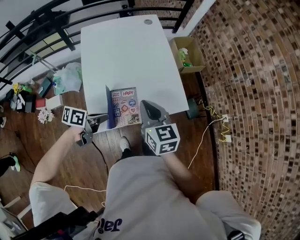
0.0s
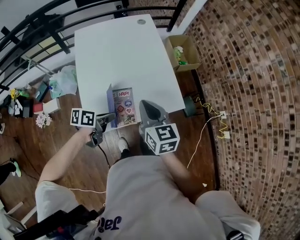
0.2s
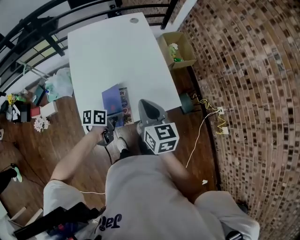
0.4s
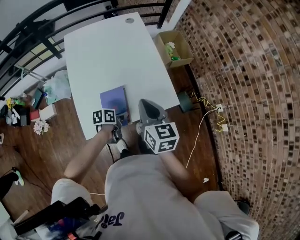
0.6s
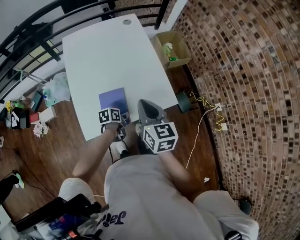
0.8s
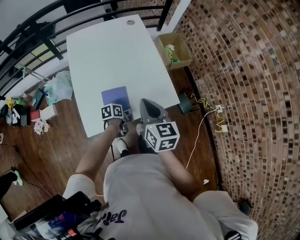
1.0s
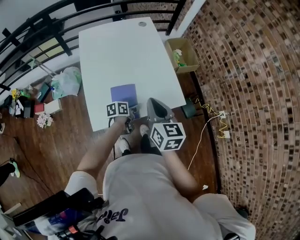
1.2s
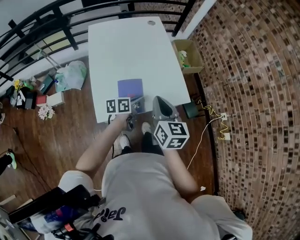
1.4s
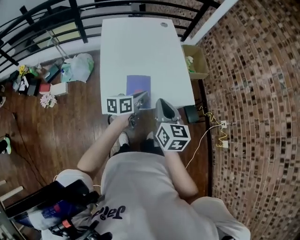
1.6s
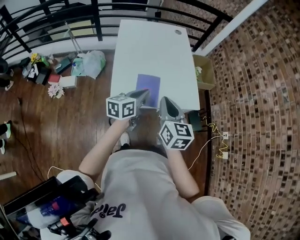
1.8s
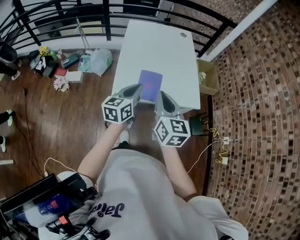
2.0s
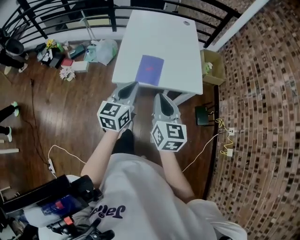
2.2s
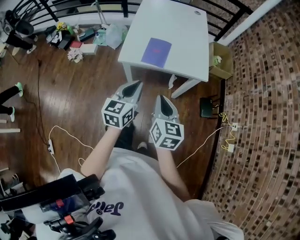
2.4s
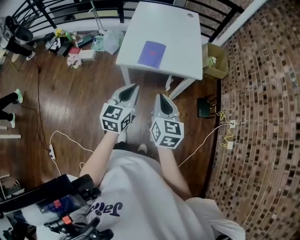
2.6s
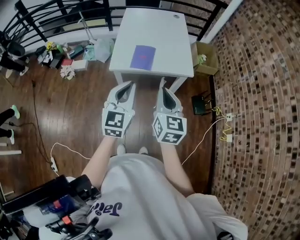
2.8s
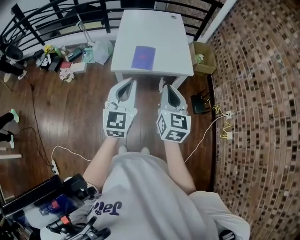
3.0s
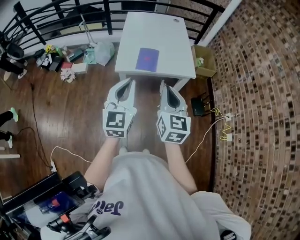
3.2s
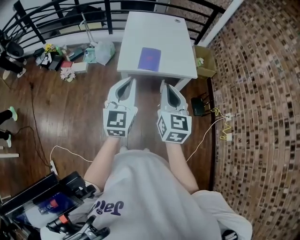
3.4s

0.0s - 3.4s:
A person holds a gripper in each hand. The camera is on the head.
0.0s - 1.6s: The left gripper is displaced to the right by approximately 10 cm, goes downward and returns, approximately 15 cm each way, and changes its angle by approximately 30 degrees. The right gripper heads backward, covering some 10 cm.
1.6s - 3.4s: The left gripper heads backward and upward, covering about 40 cm, and changes its angle by some 70 degrees, while the right gripper is displaced backward by some 25 cm.

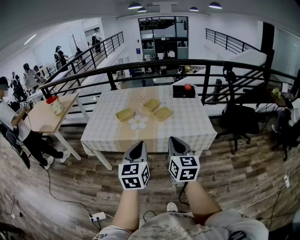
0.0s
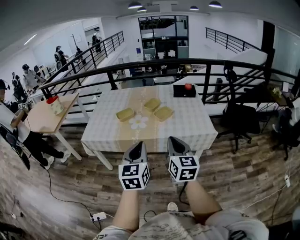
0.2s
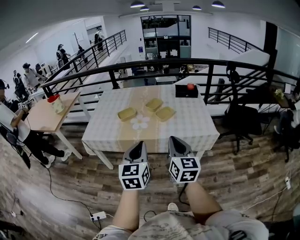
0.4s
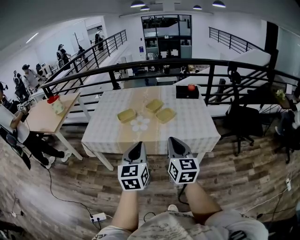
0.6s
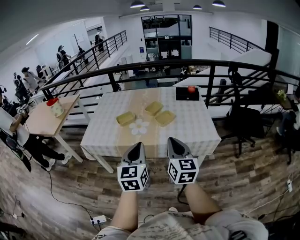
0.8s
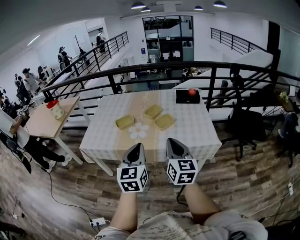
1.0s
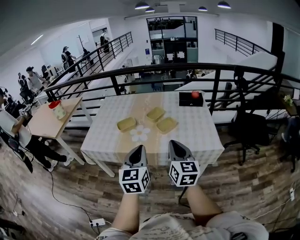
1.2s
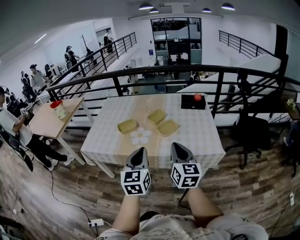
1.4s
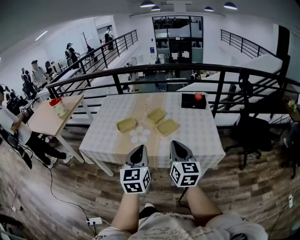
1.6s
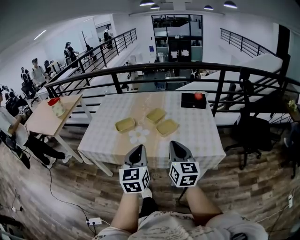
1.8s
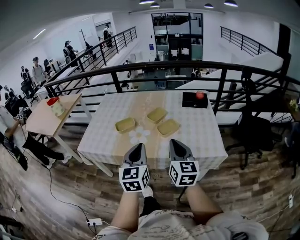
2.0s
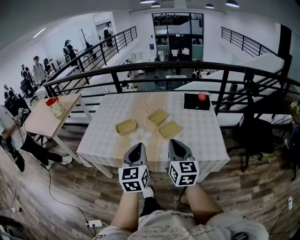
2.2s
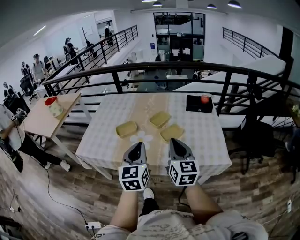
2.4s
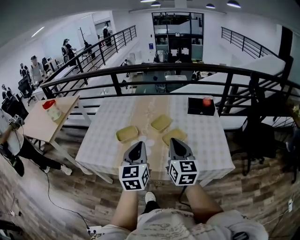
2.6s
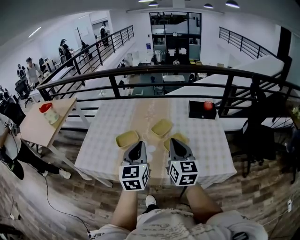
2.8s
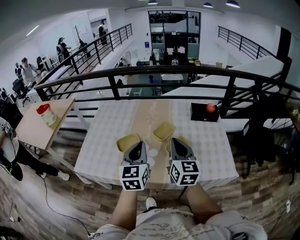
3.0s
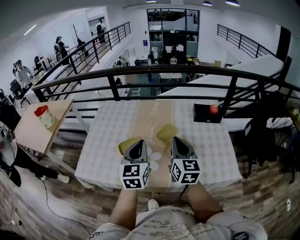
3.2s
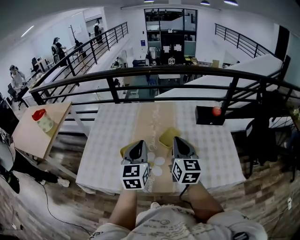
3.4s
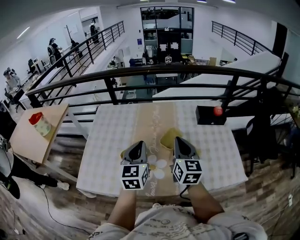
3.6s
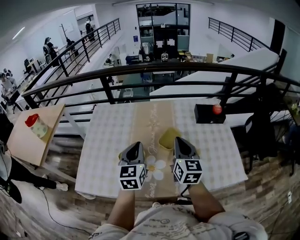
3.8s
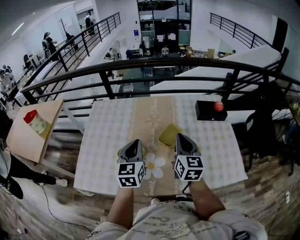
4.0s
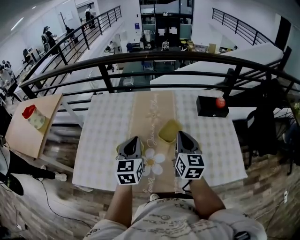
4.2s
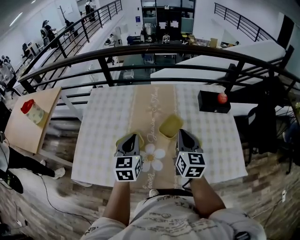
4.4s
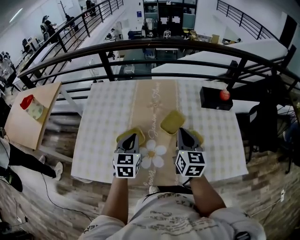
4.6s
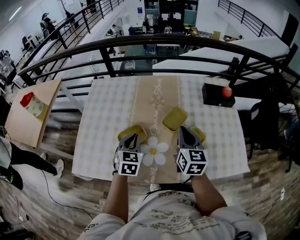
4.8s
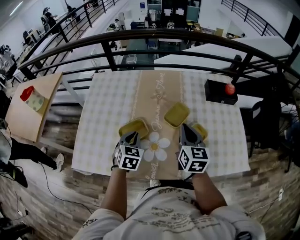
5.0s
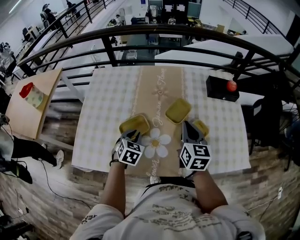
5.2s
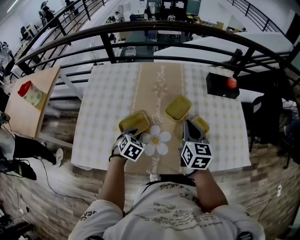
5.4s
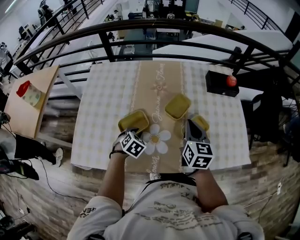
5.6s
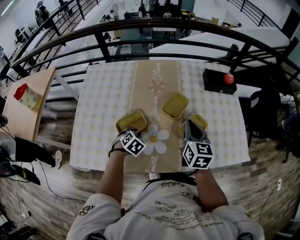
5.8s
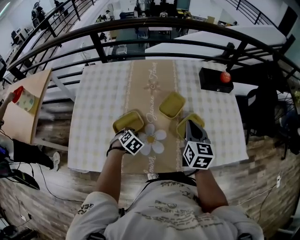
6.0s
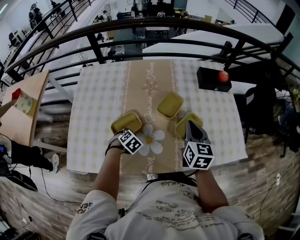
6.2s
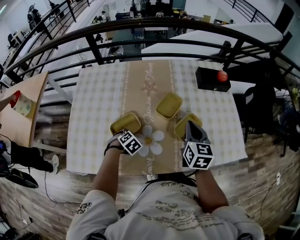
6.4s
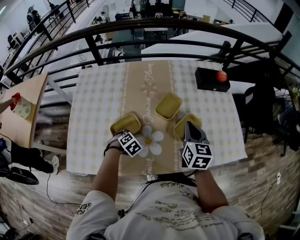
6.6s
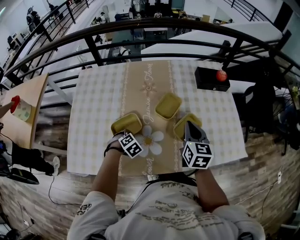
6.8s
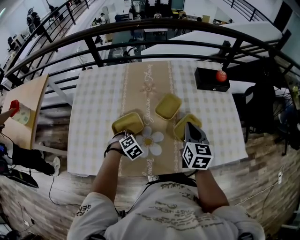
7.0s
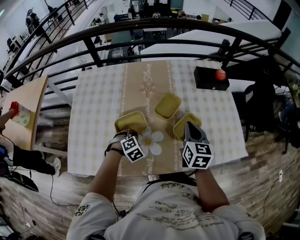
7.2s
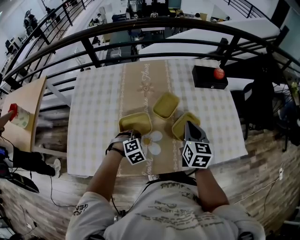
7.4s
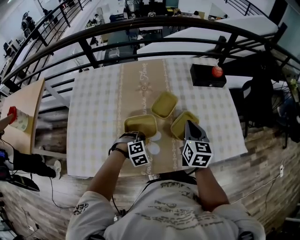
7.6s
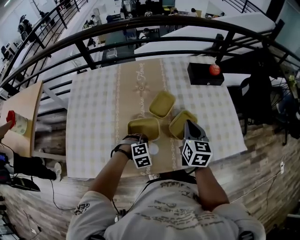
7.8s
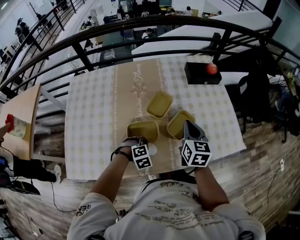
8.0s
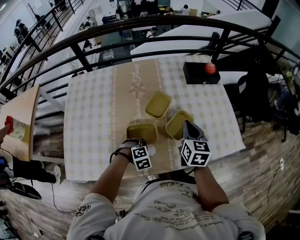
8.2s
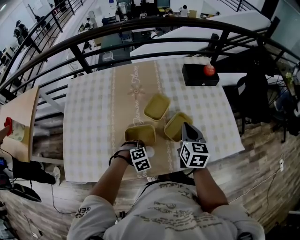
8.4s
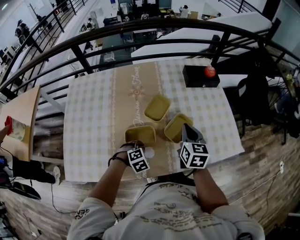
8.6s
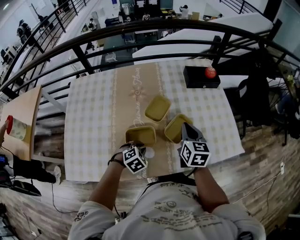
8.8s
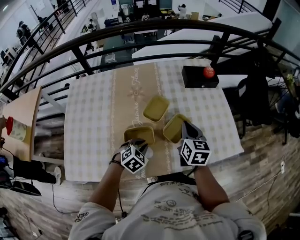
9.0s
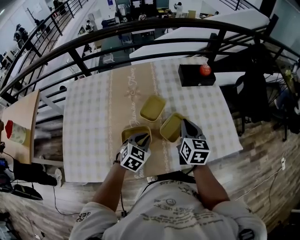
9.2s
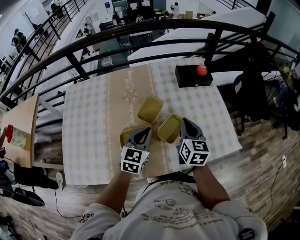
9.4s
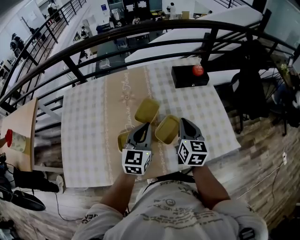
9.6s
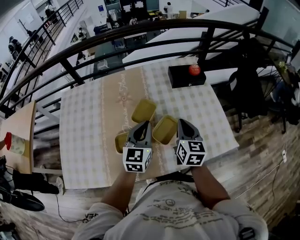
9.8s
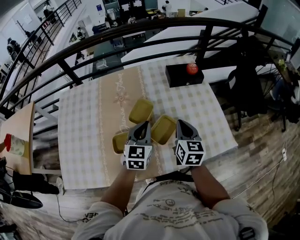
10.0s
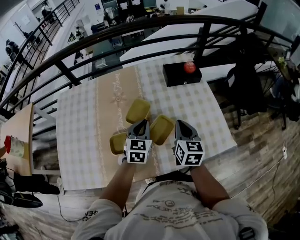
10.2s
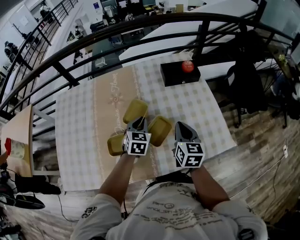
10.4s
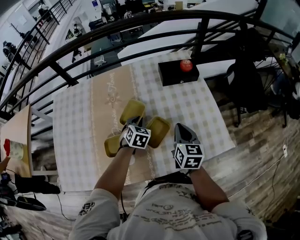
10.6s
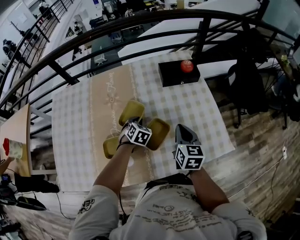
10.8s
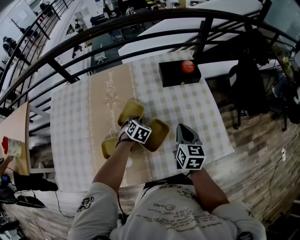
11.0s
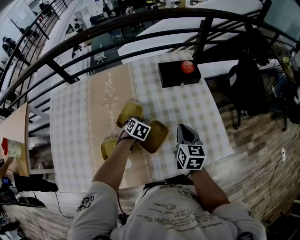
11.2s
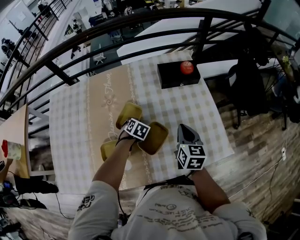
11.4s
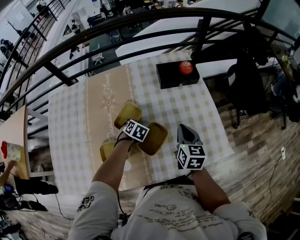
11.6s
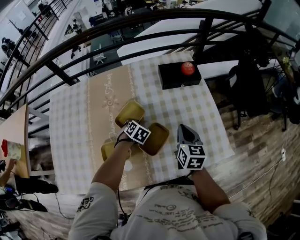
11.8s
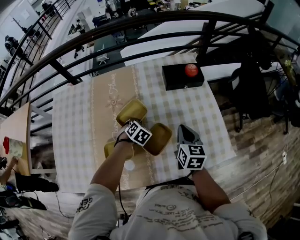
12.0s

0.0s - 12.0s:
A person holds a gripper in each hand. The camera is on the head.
0.0s - 1.6s: The two grippers go approximately 15 cm forward.
1.6s - 3.0s: Both grippers move forward, some 25 cm.
3.0s - 4.4s: The left gripper is displaced forward, downward and to the left by approximately 20 cm. The right gripper shifts roughly 15 cm forward and downward.
4.4s - 6.0s: The left gripper shifts approximately 25 cm downward, and tips its fingers downward by some 50 degrees, while the right gripper goes some 5 cm downward.
6.0s - 7.6s: The left gripper moves to the right, roughly 10 cm, and rotates approximately 40 degrees.
7.6s - 9.0s: The left gripper shifts by roughly 5 cm, and swivels about 30 degrees.
9.0s - 10.4s: The left gripper goes roughly 20 cm forward and to the right, travels upward and back again, some 15 cm each way, and swivels some 30 degrees, while the right gripper heads to the right, covering roughly 10 cm.
10.4s - 12.0s: The left gripper is displaced downward and forward by about 10 cm, and changes its angle by about 30 degrees. The right gripper shifts by about 5 cm.

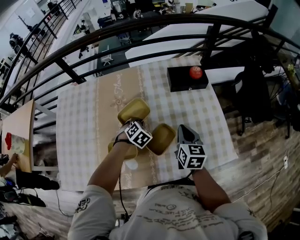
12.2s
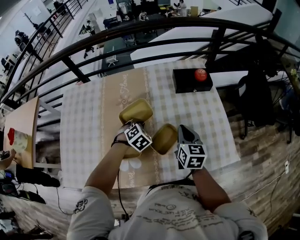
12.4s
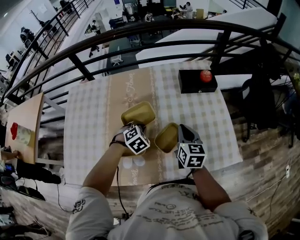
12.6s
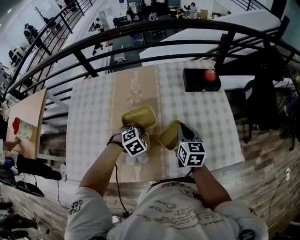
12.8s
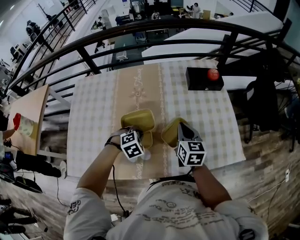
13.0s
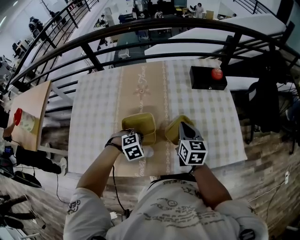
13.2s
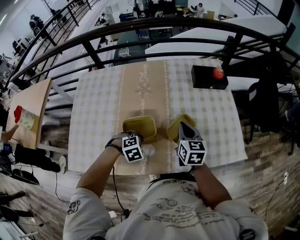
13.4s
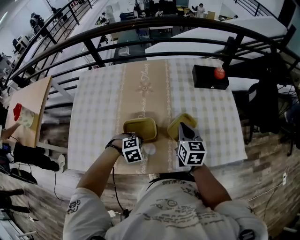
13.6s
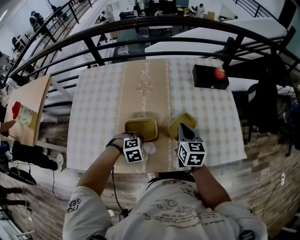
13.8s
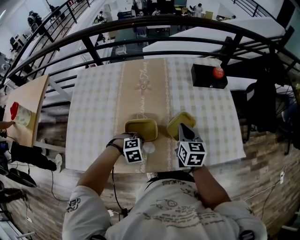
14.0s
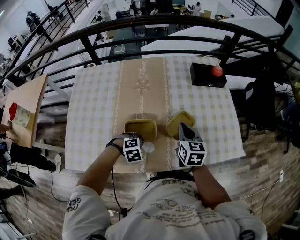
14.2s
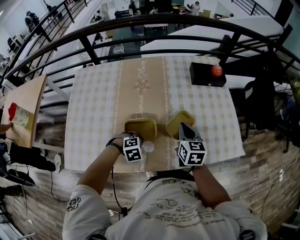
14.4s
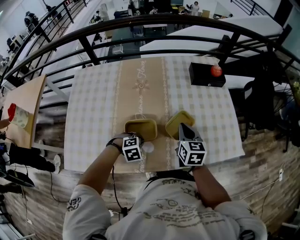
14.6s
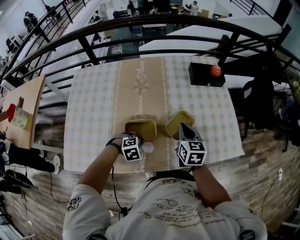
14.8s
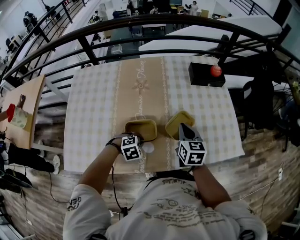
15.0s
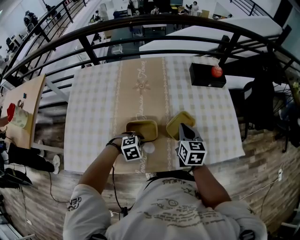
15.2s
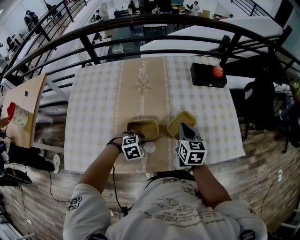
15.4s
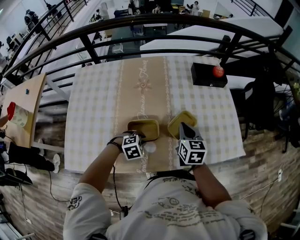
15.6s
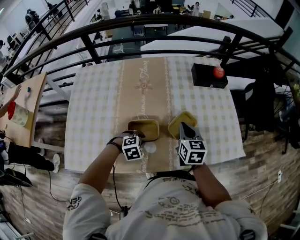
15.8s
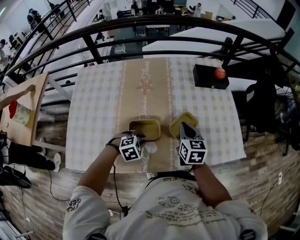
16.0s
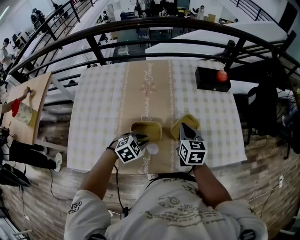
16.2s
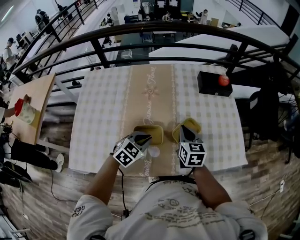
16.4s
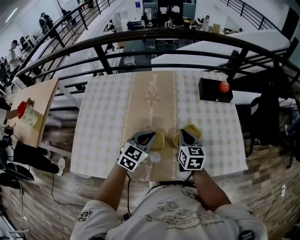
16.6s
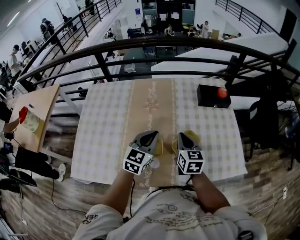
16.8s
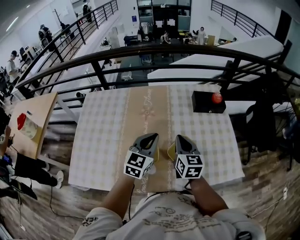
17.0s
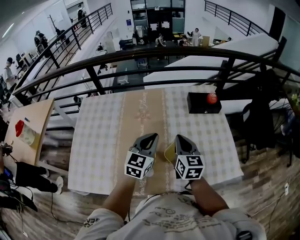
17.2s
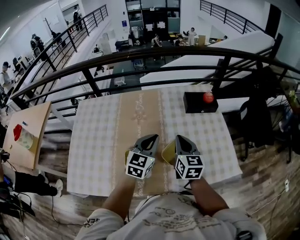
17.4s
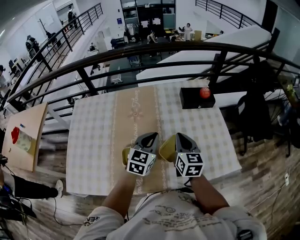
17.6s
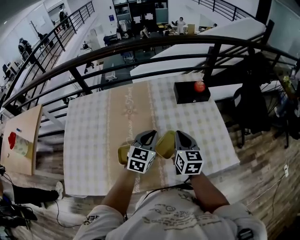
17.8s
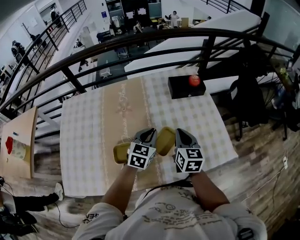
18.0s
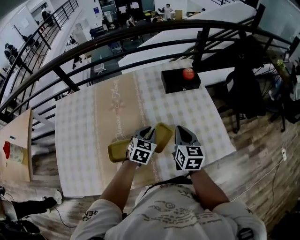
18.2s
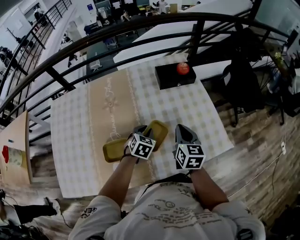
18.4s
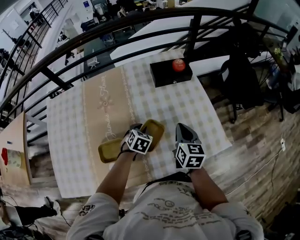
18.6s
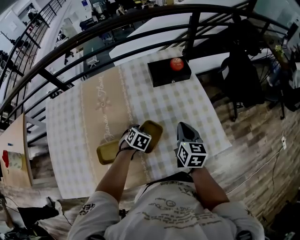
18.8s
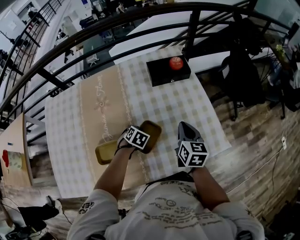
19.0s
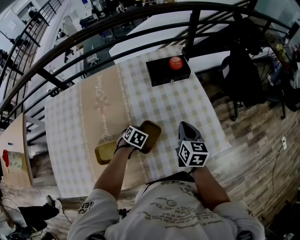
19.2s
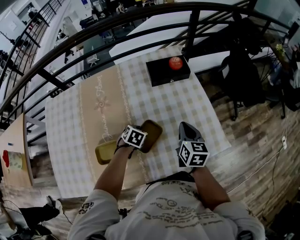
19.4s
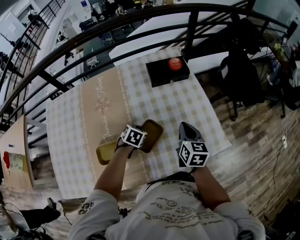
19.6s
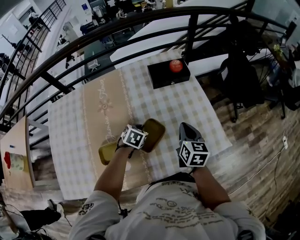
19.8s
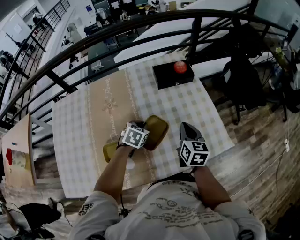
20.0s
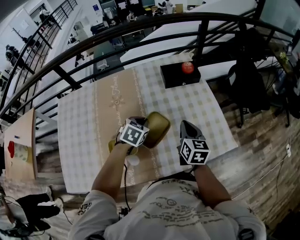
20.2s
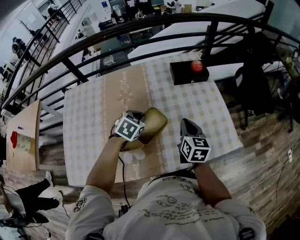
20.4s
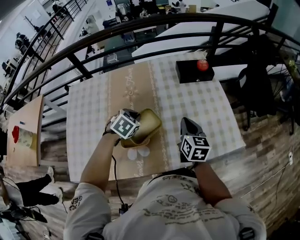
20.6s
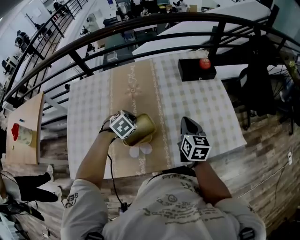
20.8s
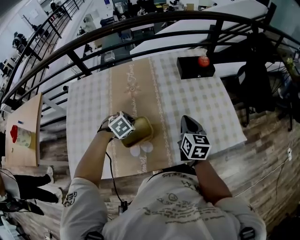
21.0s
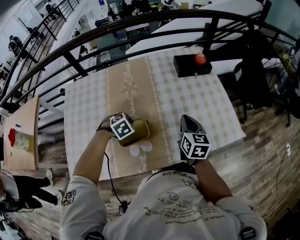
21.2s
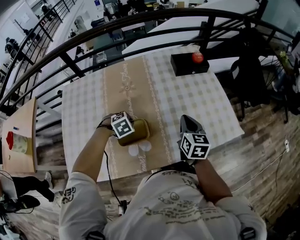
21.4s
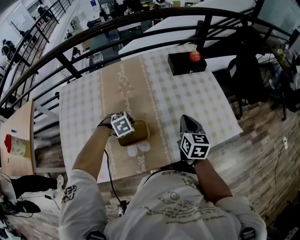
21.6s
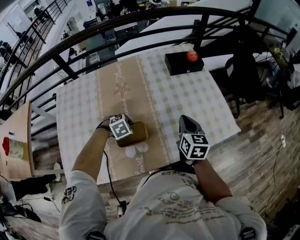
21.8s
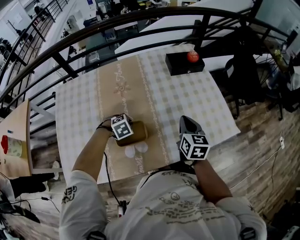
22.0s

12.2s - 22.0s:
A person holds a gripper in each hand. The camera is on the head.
12.2s - 13.6s: The right gripper shifts about 15 cm to the left and backward. Meanwhile the left gripper shifts roughly 25 cm backward and to the left, and changes its angle by approximately 30 degrees.
13.6s - 15.0s: The grippers move only a little.
15.0s - 16.4s: The left gripper travels upward by roughly 10 cm, and points its fingers some 30 degrees further upward.
16.4s - 17.8s: The right gripper shifts about 10 cm to the right and upward. Meanwhile the left gripper travels to the right, forward and upward by approximately 15 cm, and turns by approximately 20 degrees.
17.8s - 19.2s: The right gripper shifts approximately 15 cm to the right and downward. The left gripper heads downward, covering about 25 cm, and tips its fingers downward by approximately 50 degrees.
19.2s - 20.6s: The left gripper shifts roughly 20 cm upward and to the left. Meanwhile the right gripper heads to the left and backward, covering approximately 15 cm.
20.6s - 22.0s: The left gripper goes some 10 cm downward, and rotates approximately 30 degrees.
